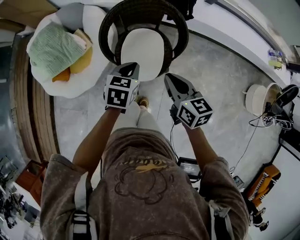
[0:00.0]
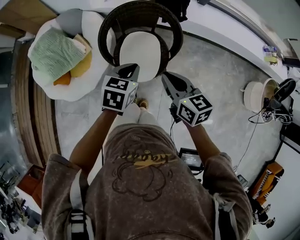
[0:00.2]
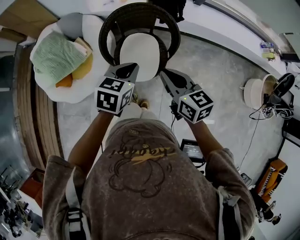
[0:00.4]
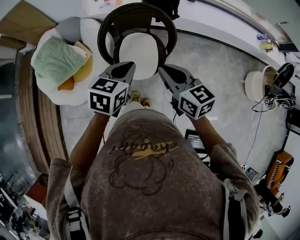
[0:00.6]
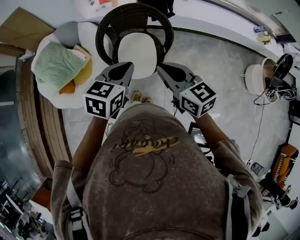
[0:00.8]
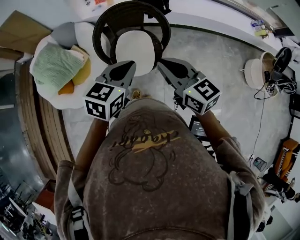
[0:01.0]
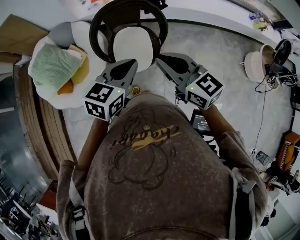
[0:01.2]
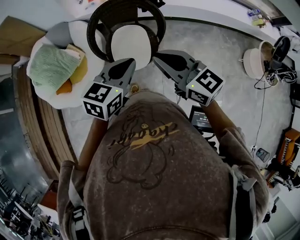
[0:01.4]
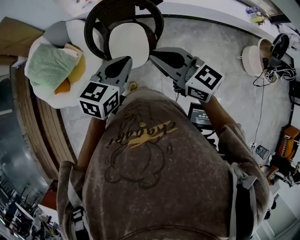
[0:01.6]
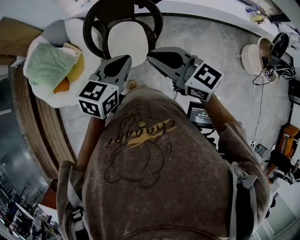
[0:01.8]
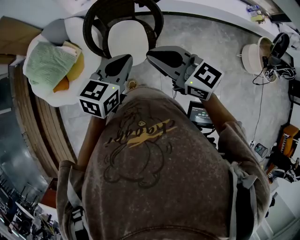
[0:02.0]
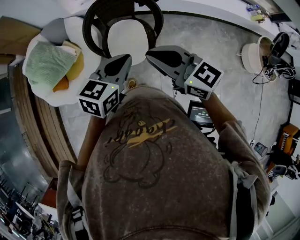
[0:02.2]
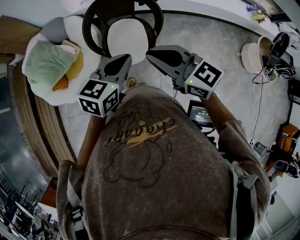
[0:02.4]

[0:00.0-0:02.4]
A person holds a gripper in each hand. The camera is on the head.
0:00.0 to 0:01.2: The grippers both shift upward and backward by about 20 cm. The right gripper rotates approximately 20 degrees, while the left gripper rotates roughly 30 degrees.
0:01.2 to 0:02.4: The grippers move only a little.

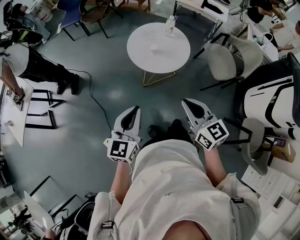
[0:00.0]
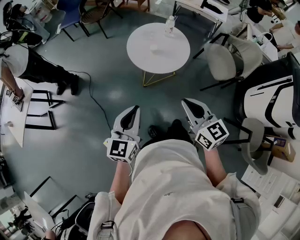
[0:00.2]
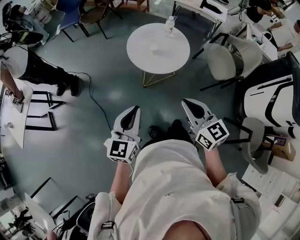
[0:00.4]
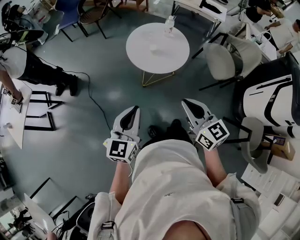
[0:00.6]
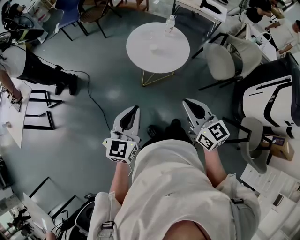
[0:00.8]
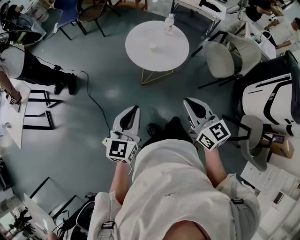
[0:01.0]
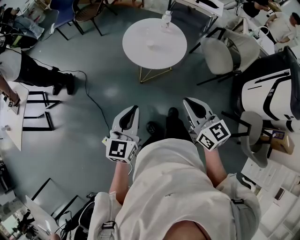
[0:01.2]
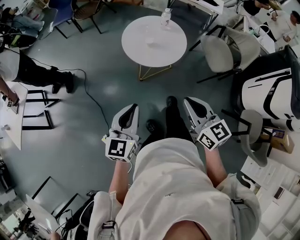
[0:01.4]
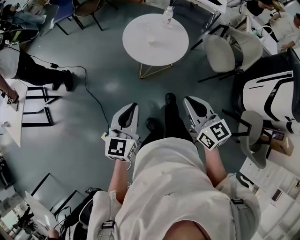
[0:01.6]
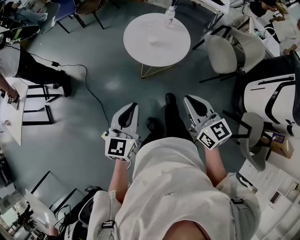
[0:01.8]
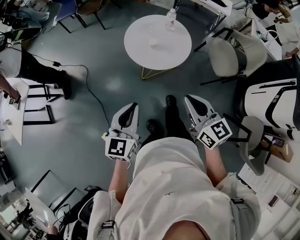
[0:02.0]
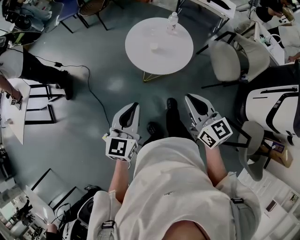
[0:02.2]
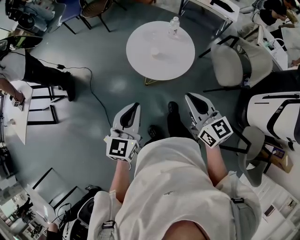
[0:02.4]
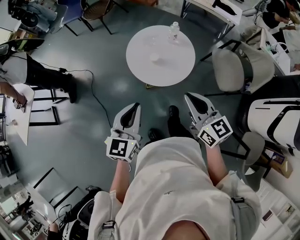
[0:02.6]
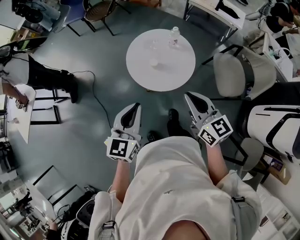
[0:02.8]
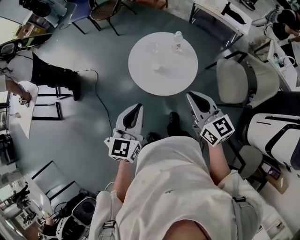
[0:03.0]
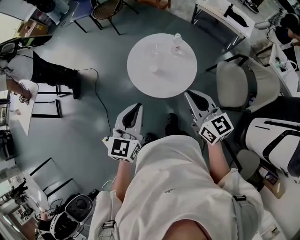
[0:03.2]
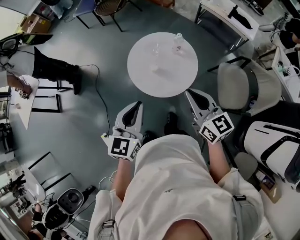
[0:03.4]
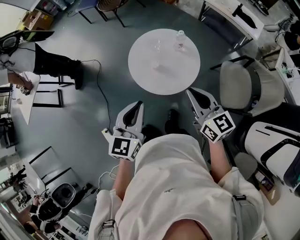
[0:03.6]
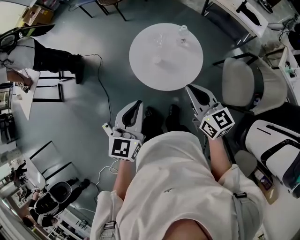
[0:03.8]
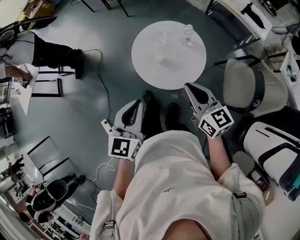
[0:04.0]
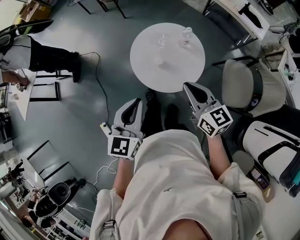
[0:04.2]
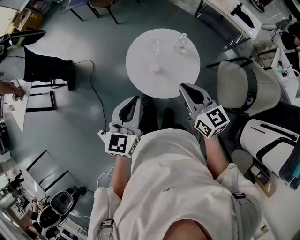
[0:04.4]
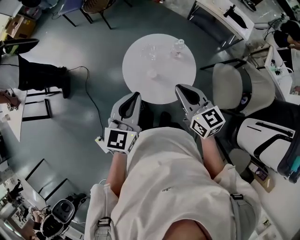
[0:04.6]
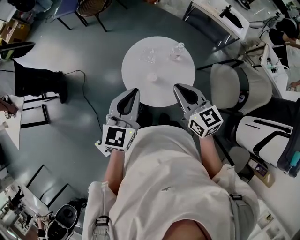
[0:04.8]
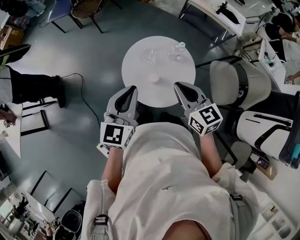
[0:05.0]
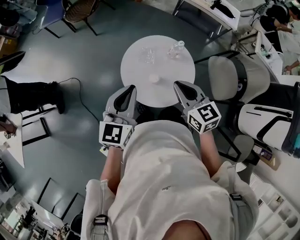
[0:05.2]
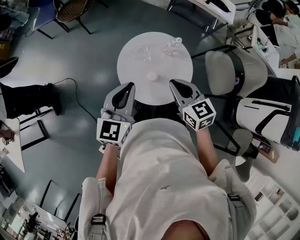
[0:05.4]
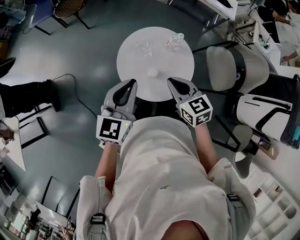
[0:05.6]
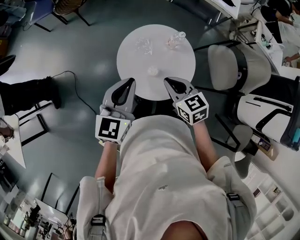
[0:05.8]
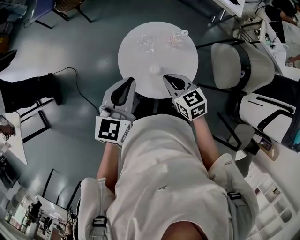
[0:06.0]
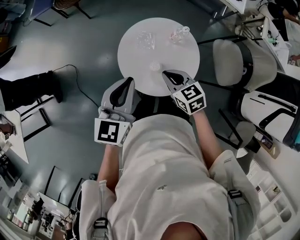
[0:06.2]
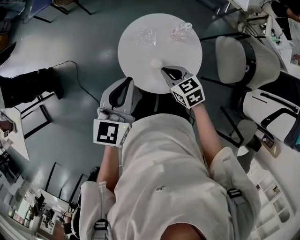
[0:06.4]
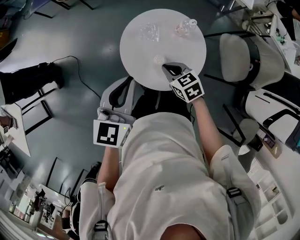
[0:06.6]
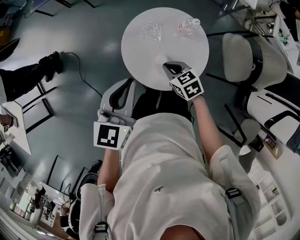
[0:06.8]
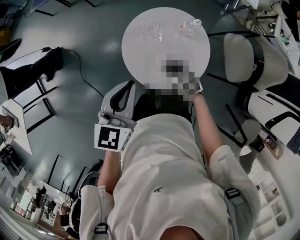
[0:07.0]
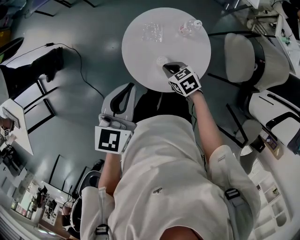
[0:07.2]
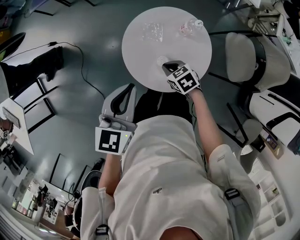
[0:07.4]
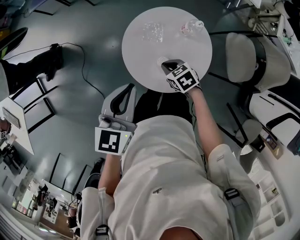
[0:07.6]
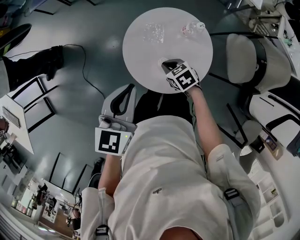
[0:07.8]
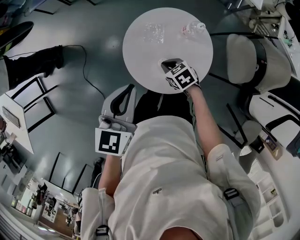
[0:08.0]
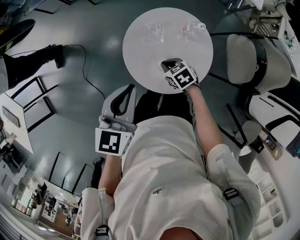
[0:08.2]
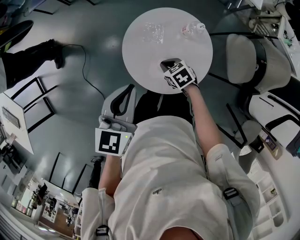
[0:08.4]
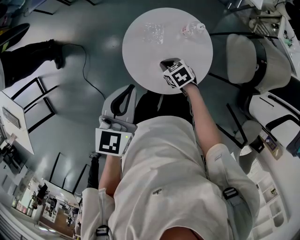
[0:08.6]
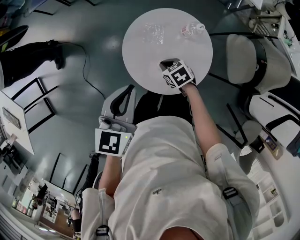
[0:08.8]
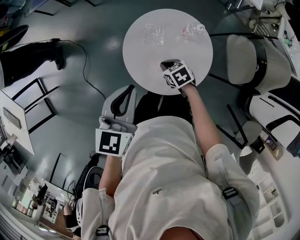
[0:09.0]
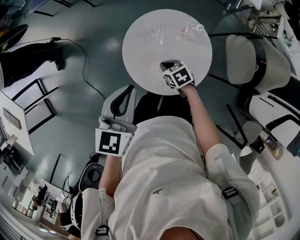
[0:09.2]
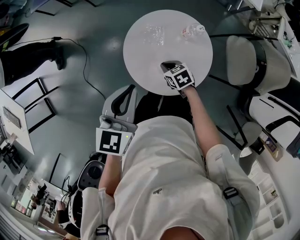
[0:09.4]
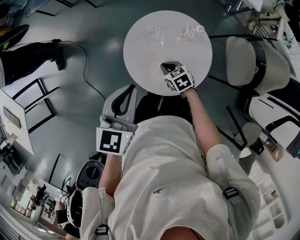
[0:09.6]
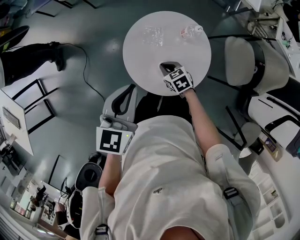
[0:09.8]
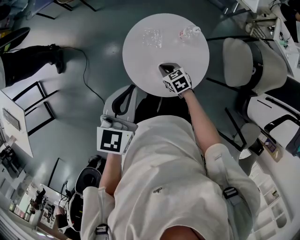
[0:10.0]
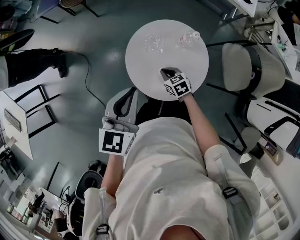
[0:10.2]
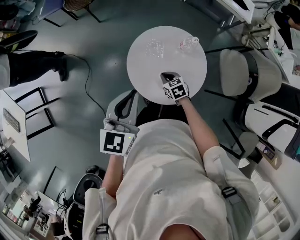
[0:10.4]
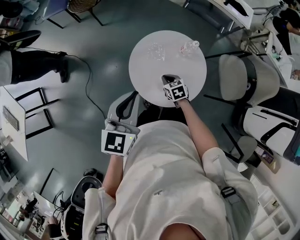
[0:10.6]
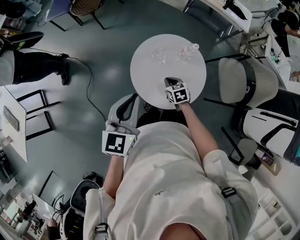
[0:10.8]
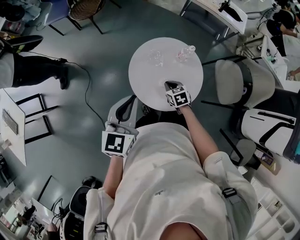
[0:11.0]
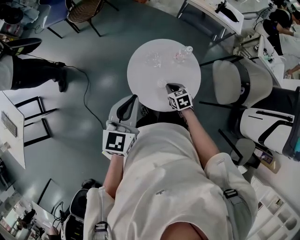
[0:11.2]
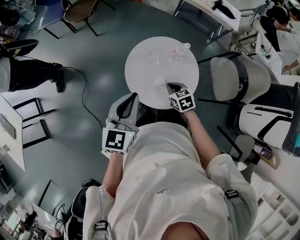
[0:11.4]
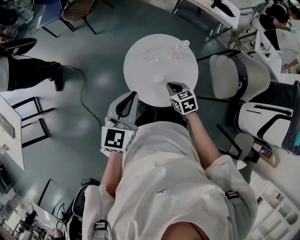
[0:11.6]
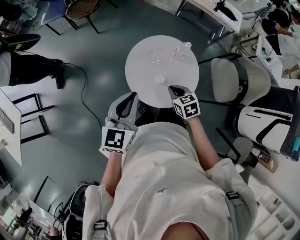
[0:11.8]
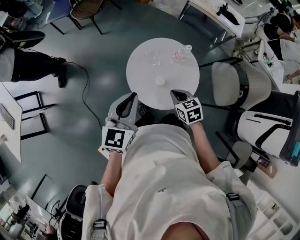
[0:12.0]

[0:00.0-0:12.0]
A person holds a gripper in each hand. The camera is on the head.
0:00.0 to 0:01.6: There are only small adjustments of the grippers.
0:01.6 to 0:03.0: The two grippers go approximately 25 cm forward and to the right.
0:03.0 to 0:04.4: Both grippers travel together forward, approximately 10 cm.
0:04.4 to 0:06.0: The left gripper is displaced forward and to the left by roughly 15 cm. The right gripper is displaced downward, to the left and forward by roughly 20 cm, and swivels approximately 20 degrees.
0:06.0 to 0:07.6: The right gripper goes roughly 15 cm downward, and rotates some 20 degrees.
0:07.6 to 0:10.4: The grippers make only small movements.
0:10.4 to 0:12.0: The right gripper travels upward and backward by some 15 cm.

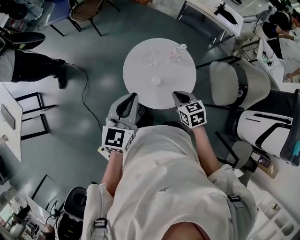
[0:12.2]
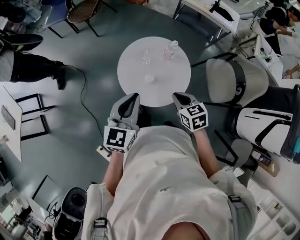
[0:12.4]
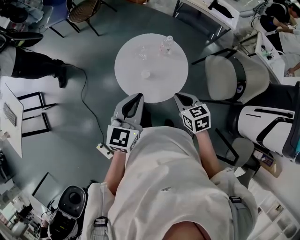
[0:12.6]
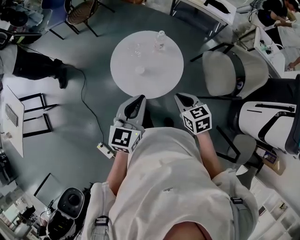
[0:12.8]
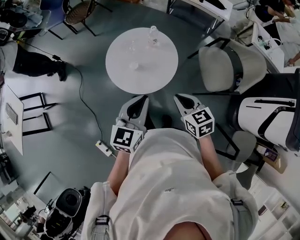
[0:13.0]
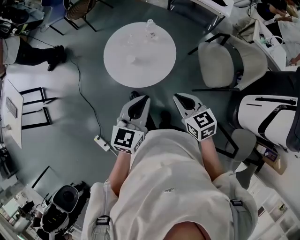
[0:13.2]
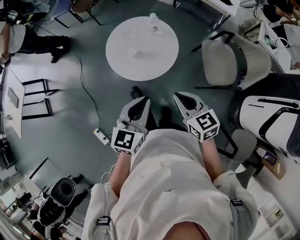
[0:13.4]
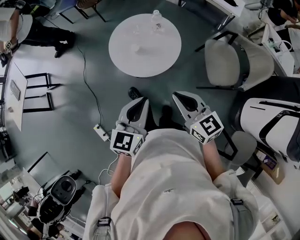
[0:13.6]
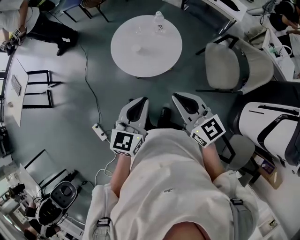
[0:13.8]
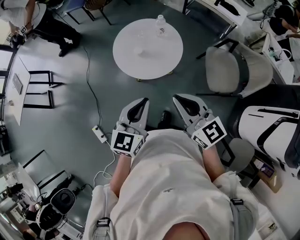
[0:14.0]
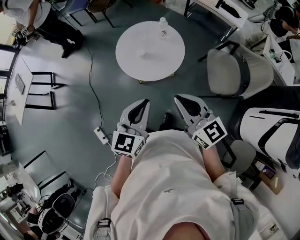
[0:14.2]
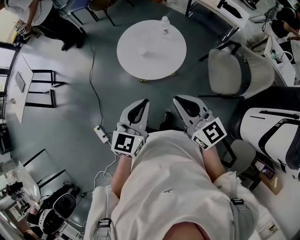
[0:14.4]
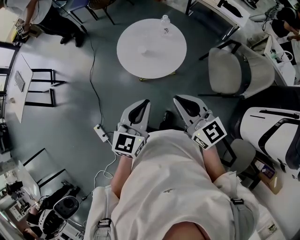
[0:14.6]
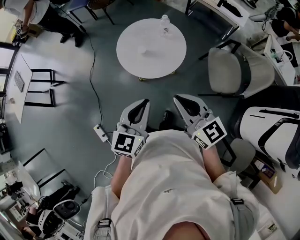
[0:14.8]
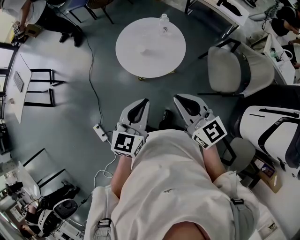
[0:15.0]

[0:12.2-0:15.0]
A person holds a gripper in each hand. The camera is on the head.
0:12.2 to 0:13.6: The right gripper travels backward, to the right and upward by approximately 30 cm, and angles its fingers upward, by roughly 30 degrees. Meanwhile the left gripper shifts approximately 30 cm backward and to the right.
0:13.6 to 0:15.0: The right gripper moves some 5 cm.

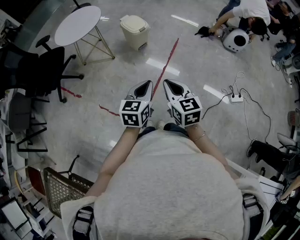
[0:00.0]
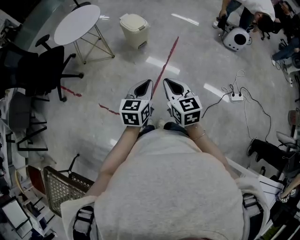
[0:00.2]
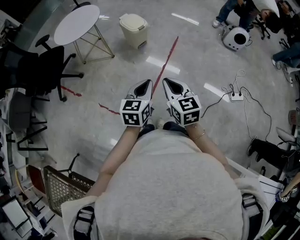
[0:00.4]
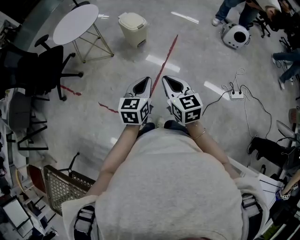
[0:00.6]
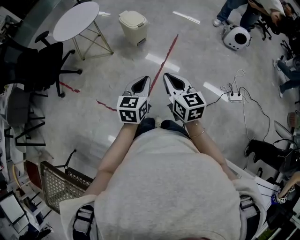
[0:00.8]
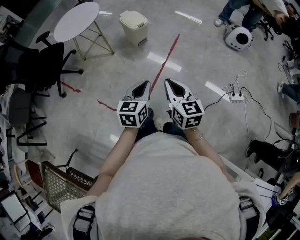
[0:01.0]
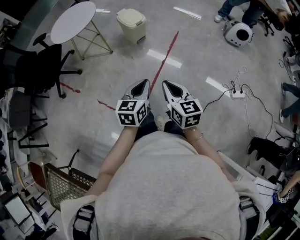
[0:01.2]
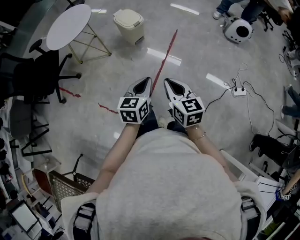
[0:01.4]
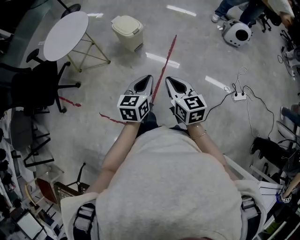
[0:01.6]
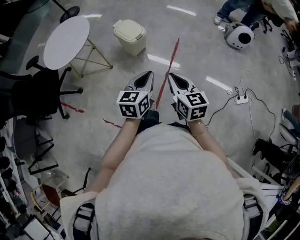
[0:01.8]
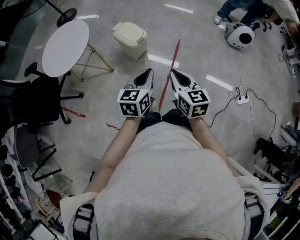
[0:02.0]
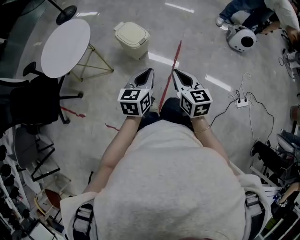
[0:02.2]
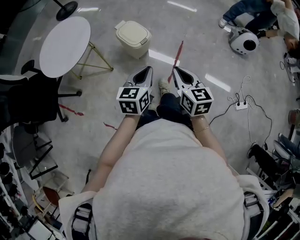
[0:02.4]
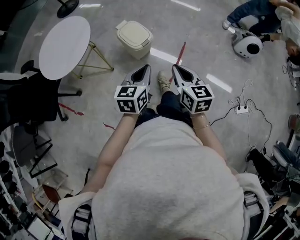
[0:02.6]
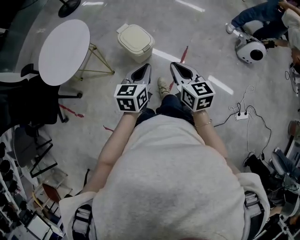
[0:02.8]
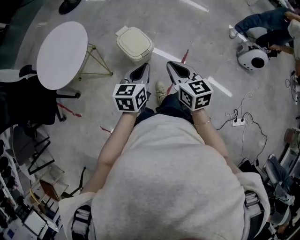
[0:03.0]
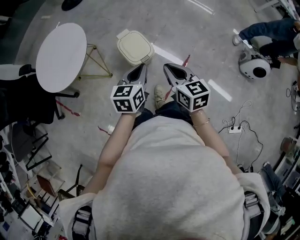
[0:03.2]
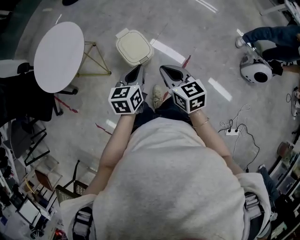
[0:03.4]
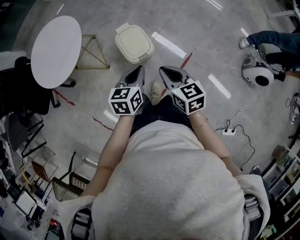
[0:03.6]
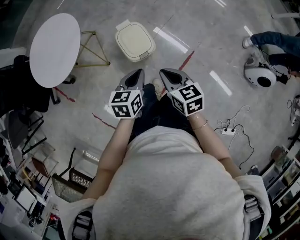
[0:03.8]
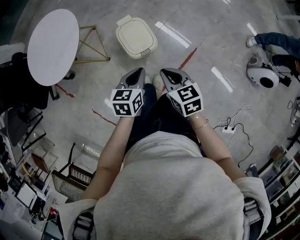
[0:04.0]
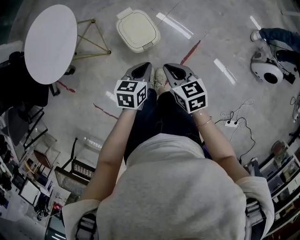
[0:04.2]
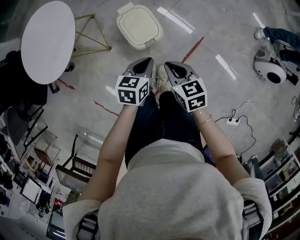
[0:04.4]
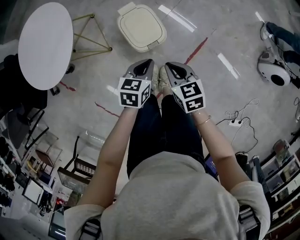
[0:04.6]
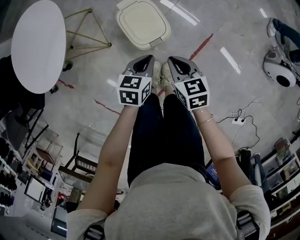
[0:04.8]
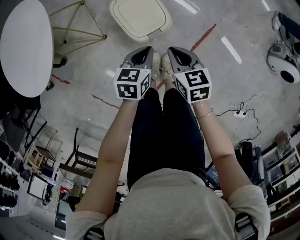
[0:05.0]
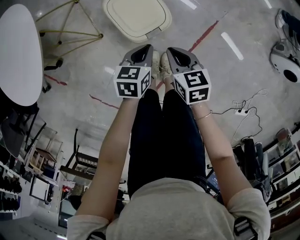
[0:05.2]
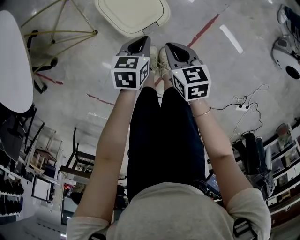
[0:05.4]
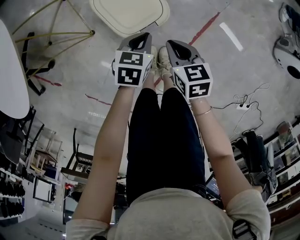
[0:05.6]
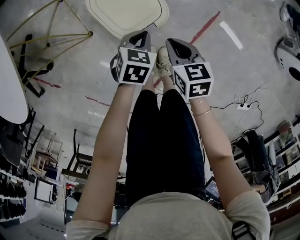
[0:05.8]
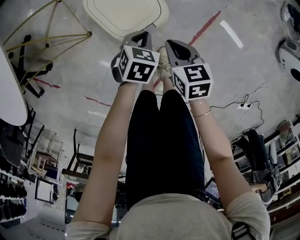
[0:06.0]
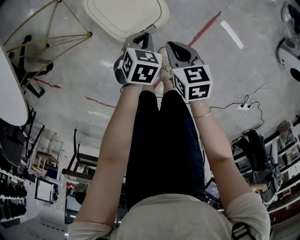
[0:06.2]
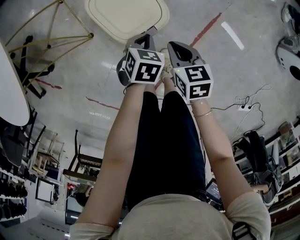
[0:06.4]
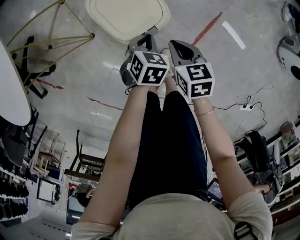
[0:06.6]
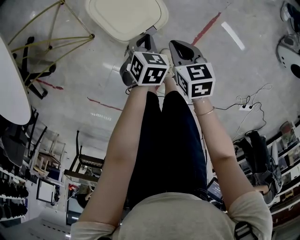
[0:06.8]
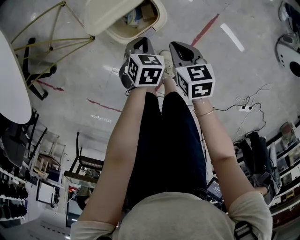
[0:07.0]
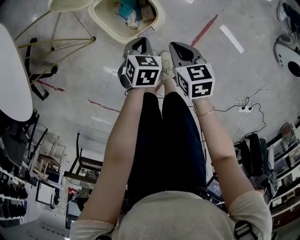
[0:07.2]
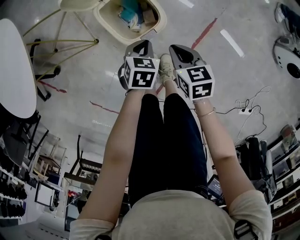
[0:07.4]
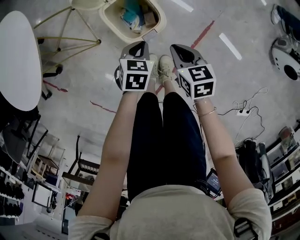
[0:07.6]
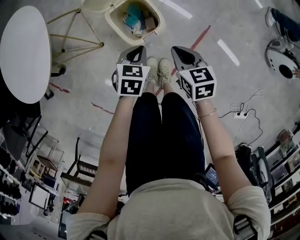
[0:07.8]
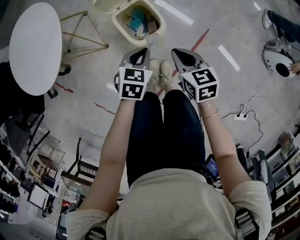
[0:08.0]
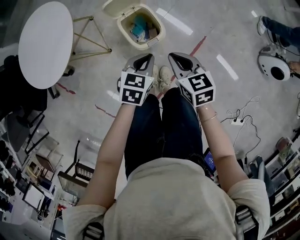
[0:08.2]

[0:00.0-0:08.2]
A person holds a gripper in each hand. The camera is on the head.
0:00.0 to 0:01.6: Both grippers travel together forward, roughly 15 cm.
0:01.6 to 0:03.2: The pair of grippers is taken forward, approximately 40 cm.
0:03.2 to 0:05.0: Both grippers travel together downward, about 30 cm. The right gripper changes its angle by approximately 20 degrees. The left gripper changes its angle by approximately 20 degrees.
0:05.0 to 0:06.6: The two grippers go roughly 15 cm downward. The left gripper turns by roughly 30 degrees.
0:06.6 to 0:08.2: The grippers both shift upward by about 25 cm. The left gripper turns by approximately 20 degrees.
